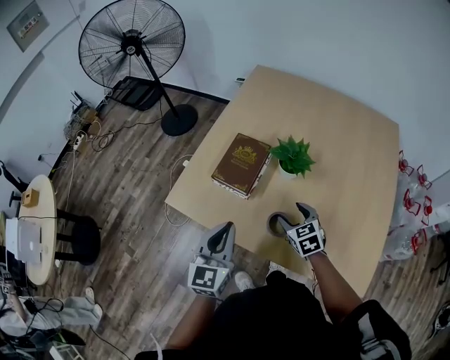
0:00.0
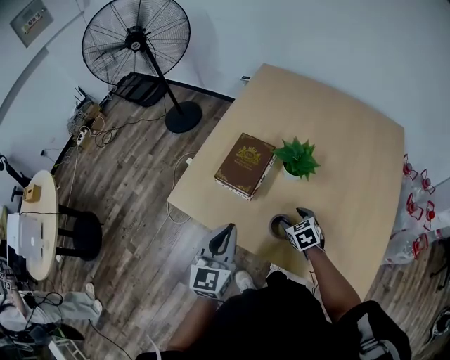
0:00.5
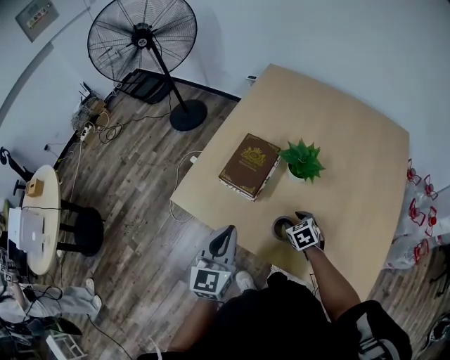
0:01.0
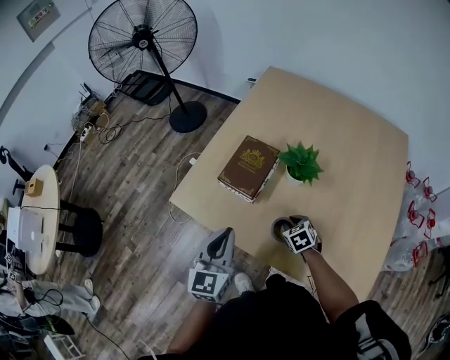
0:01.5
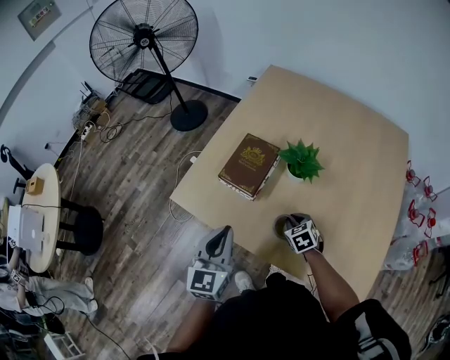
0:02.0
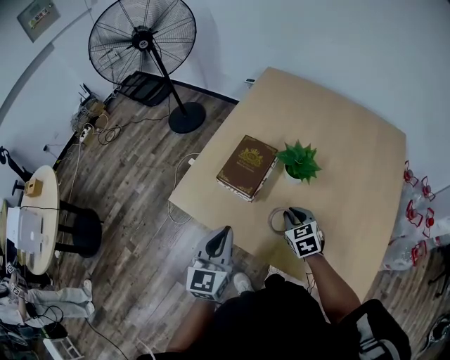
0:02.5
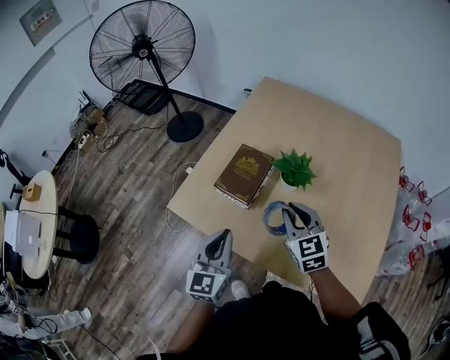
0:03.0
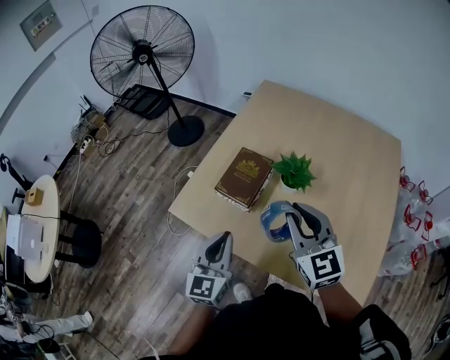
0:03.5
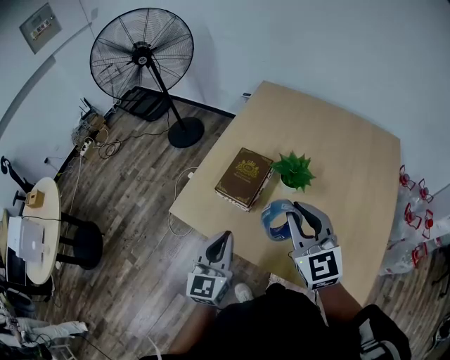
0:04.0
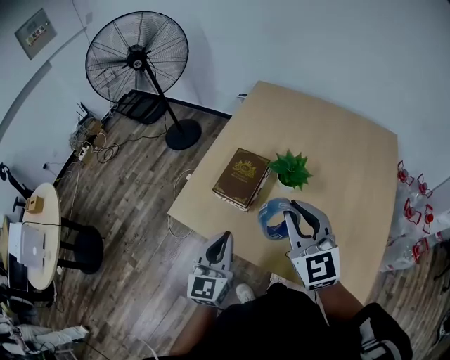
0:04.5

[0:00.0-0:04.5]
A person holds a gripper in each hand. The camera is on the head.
0:00.0 to 0:02.0: The right gripper goes roughly 10 cm downward, and closes its fingers.
0:02.0 to 0:04.5: The right gripper heads upward, covering some 35 cm, and tilts its fingers about 50 degrees upward.

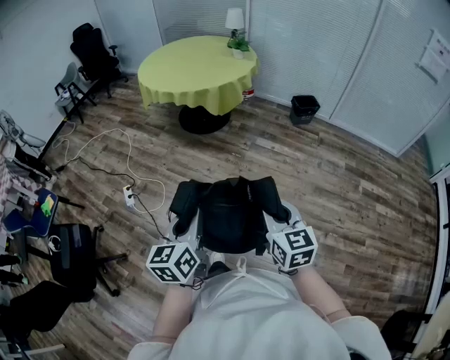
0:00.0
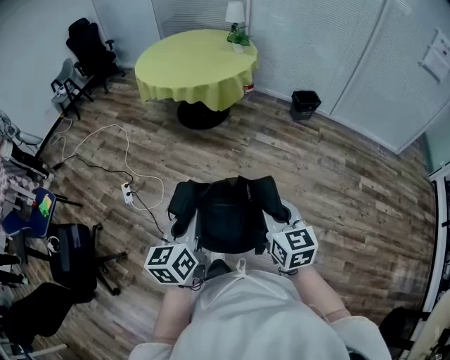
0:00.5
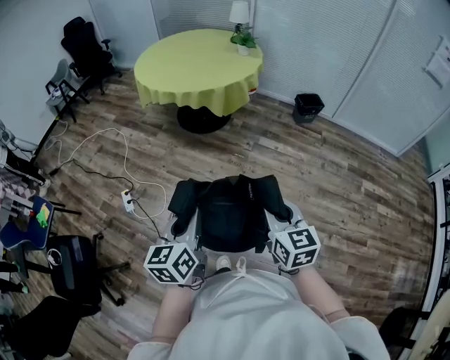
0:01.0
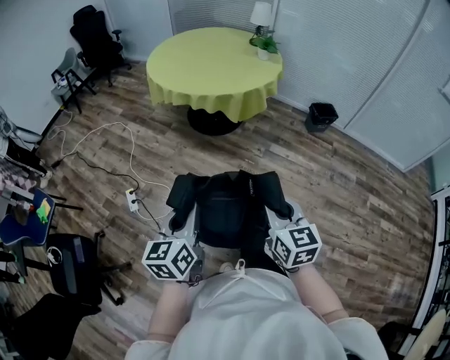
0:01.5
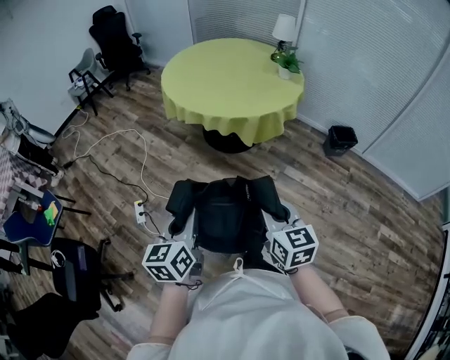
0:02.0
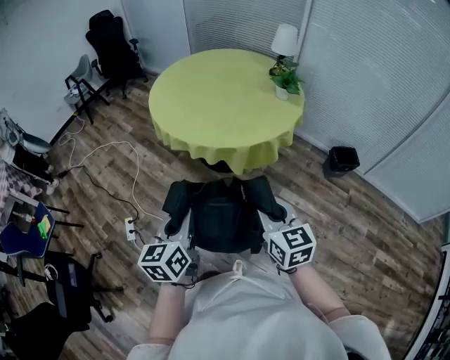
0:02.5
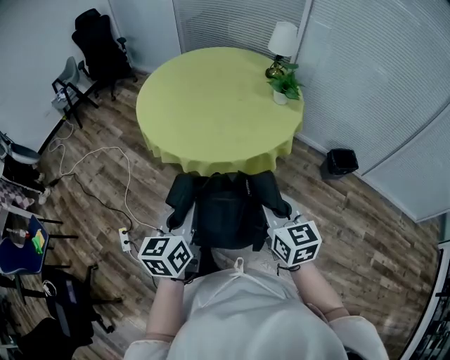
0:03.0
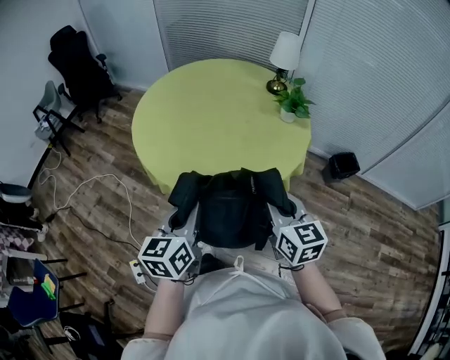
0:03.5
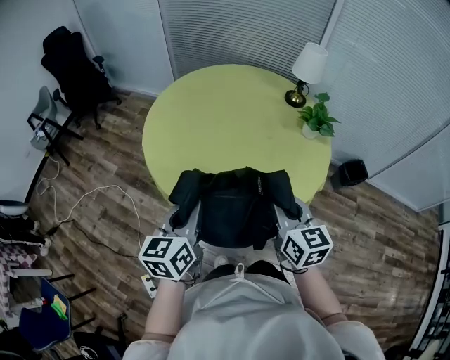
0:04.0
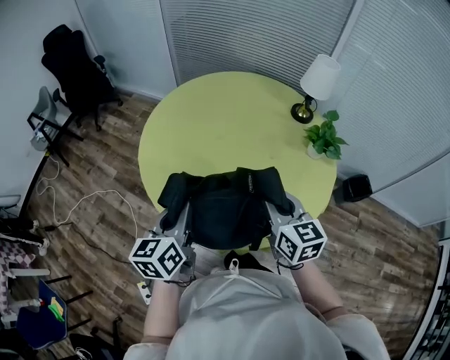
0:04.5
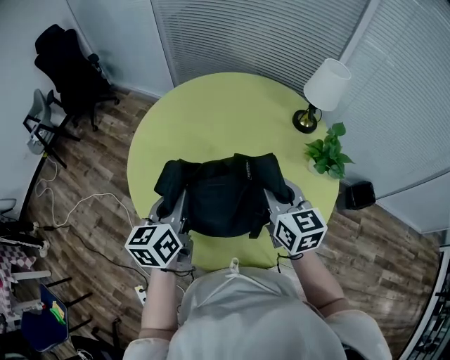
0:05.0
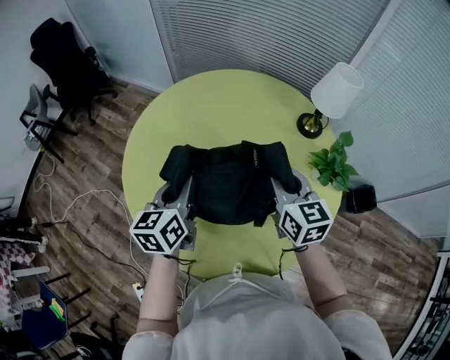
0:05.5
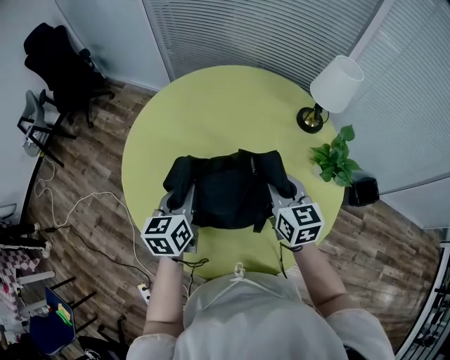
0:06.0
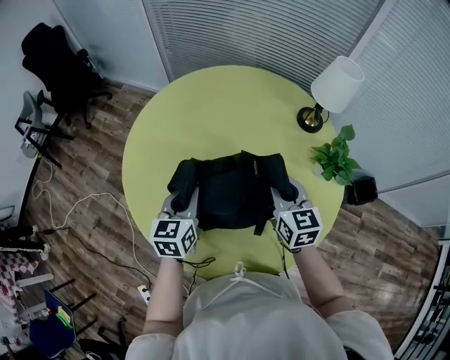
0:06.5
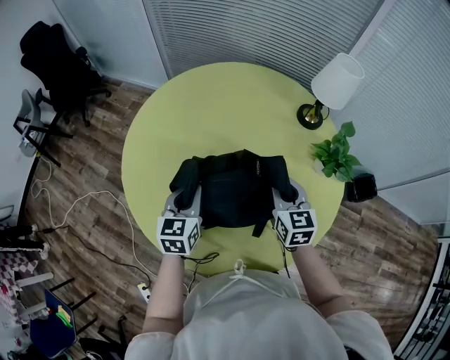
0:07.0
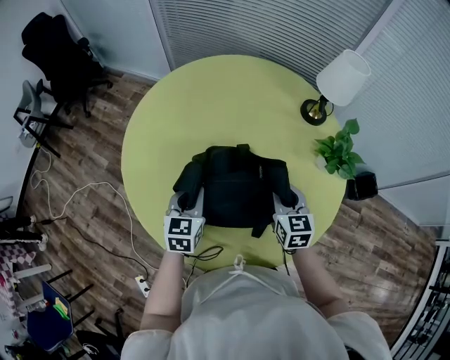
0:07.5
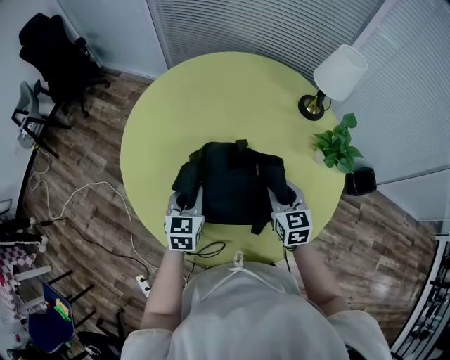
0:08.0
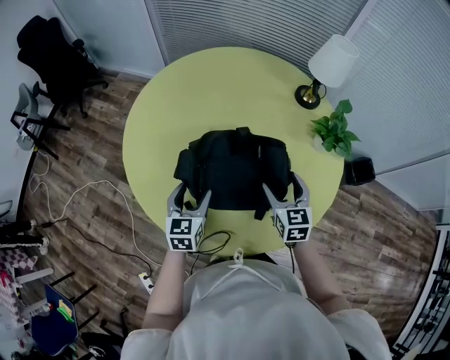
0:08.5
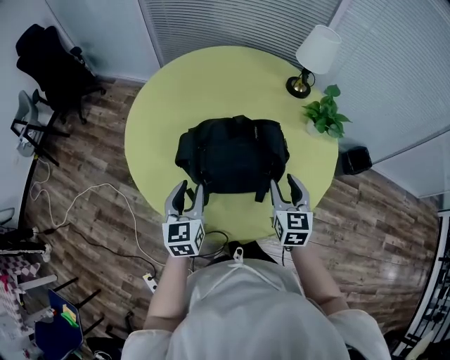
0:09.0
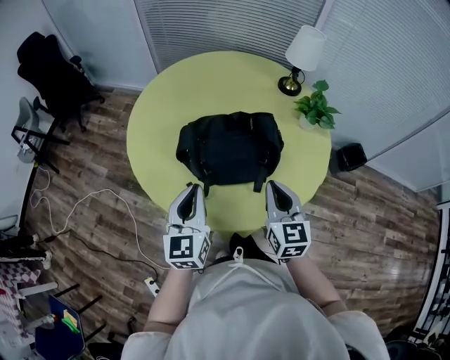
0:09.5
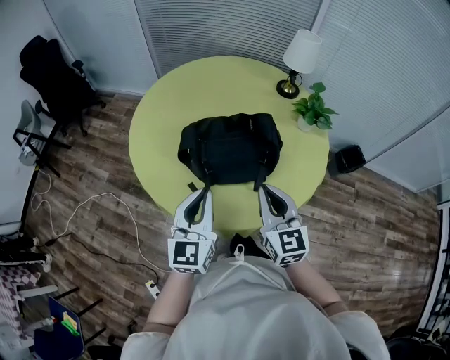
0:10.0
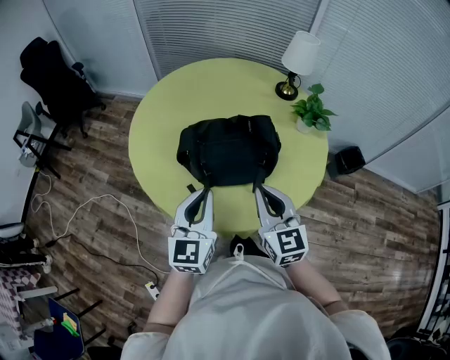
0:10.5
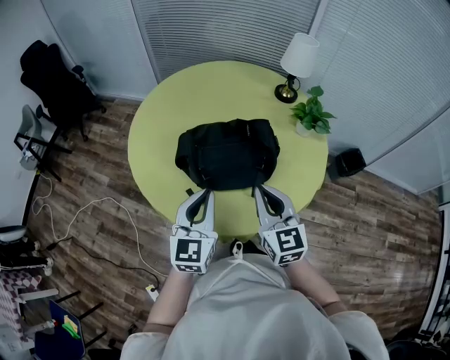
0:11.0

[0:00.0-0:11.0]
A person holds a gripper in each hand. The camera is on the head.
0:00.0 to 0:02.0: Both grippers move forward, some 35 cm.
0:02.0 to 0:03.5: Both grippers are carried forward, approximately 50 cm.
0:03.5 to 0:05.5: The two grippers travel together, forward, approximately 50 cm.
0:05.5 to 0:07.5: The grippers both shift downward by about 15 cm. The left gripper rotates some 20 degrees.
0:07.5 to 0:09.0: The two grippers go approximately 15 cm backward. The left gripper opens its fingers, while the right gripper opens up.
0:09.0 to 0:11.0: The right gripper shifts approximately 15 cm upward, backward and to the left, and closes its fingers. Meanwhile the left gripper is displaced upward, backward and to the right by some 15 cm, and closes.

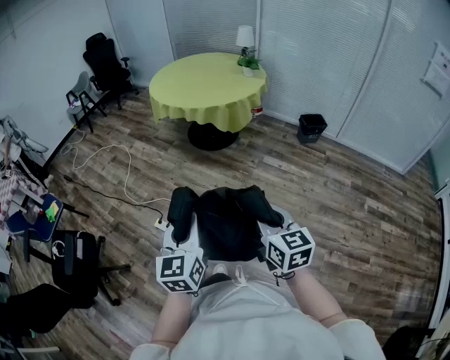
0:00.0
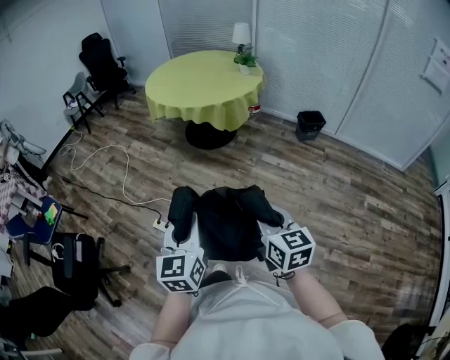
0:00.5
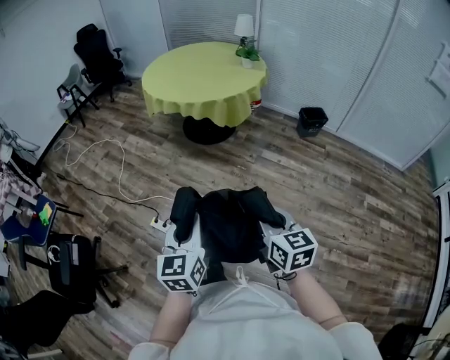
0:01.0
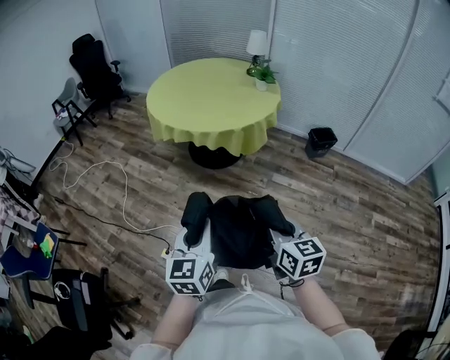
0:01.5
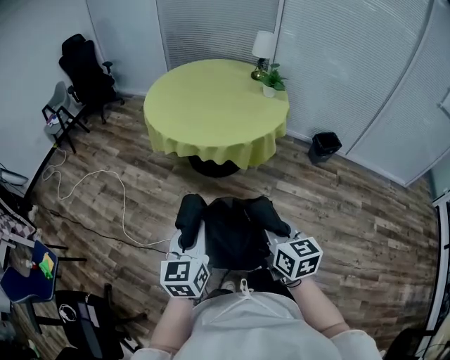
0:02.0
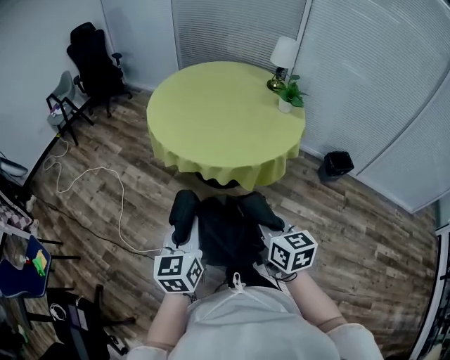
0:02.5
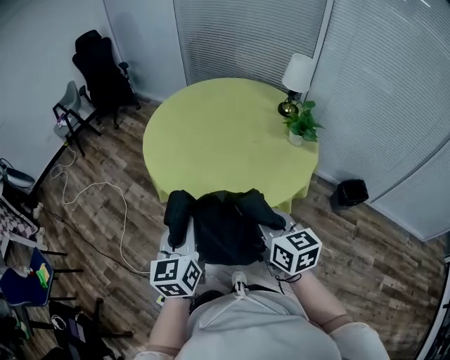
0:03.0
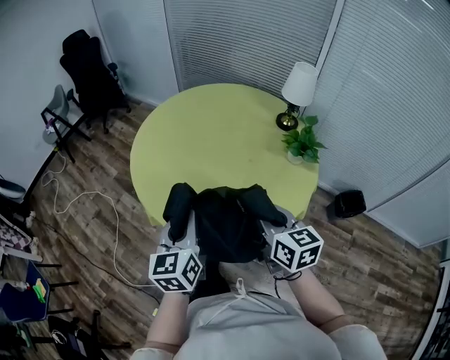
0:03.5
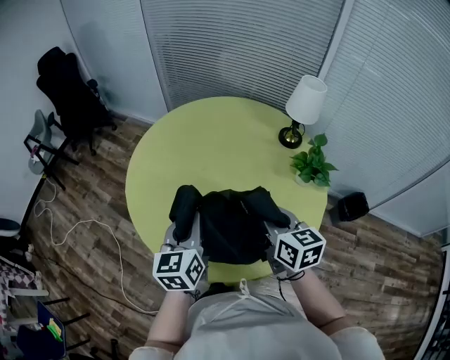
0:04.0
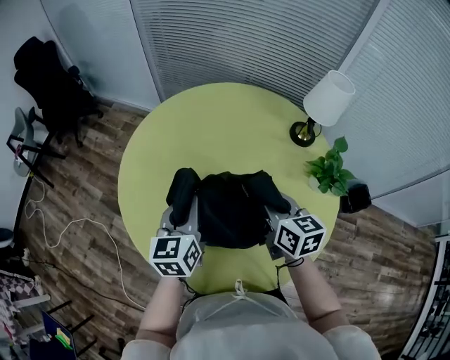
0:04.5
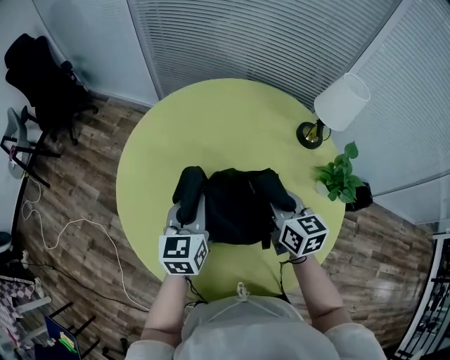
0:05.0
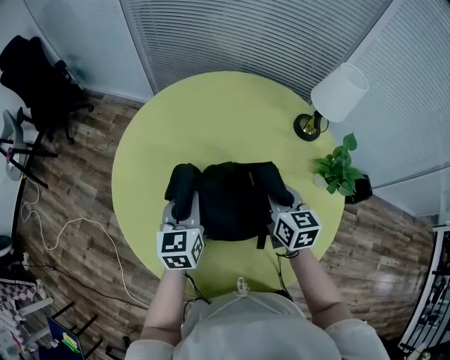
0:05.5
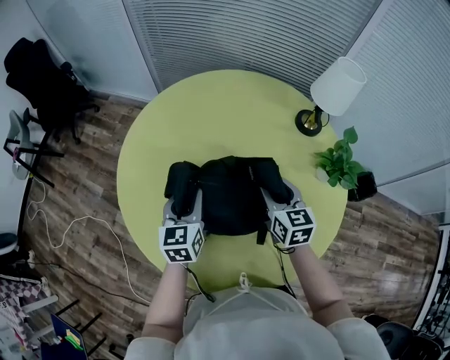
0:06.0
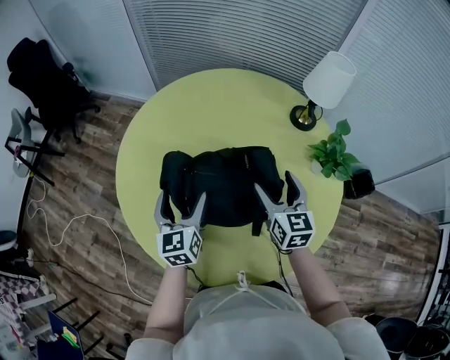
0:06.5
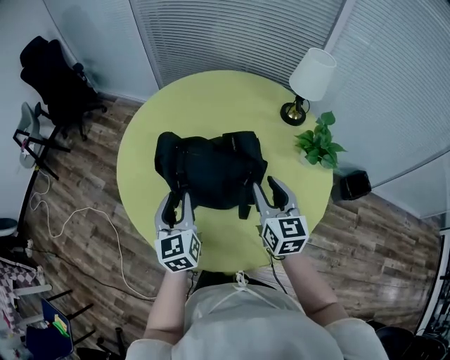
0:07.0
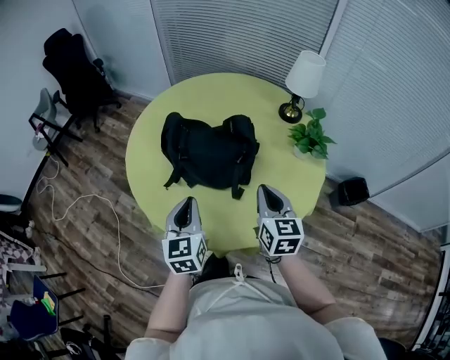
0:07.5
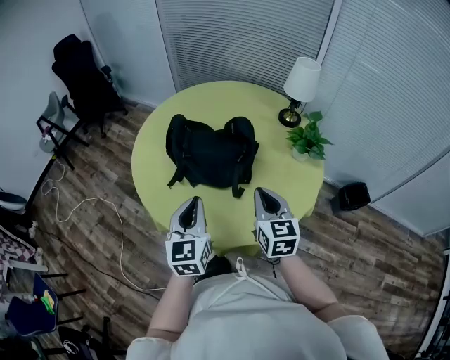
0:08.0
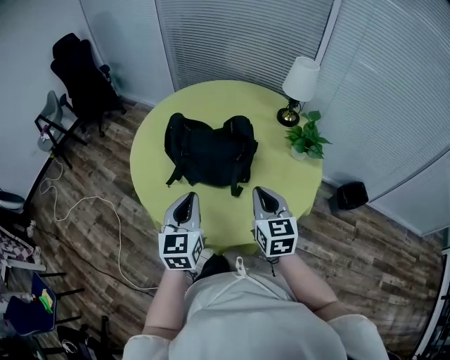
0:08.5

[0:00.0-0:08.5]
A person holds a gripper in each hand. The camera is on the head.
0:00.0 to 0:02.0: Both grippers are carried forward, roughly 50 cm.
0:02.0 to 0:04.0: The two grippers travel together, forward, about 70 cm.
0:04.0 to 0:06.5: The grippers both shift forward and downward by about 20 cm. The right gripper opens; the left gripper opens.
0:06.5 to 0:08.5: The two grippers go about 25 cm backward. The right gripper closes its fingers. Meanwhile the left gripper closes its fingers.

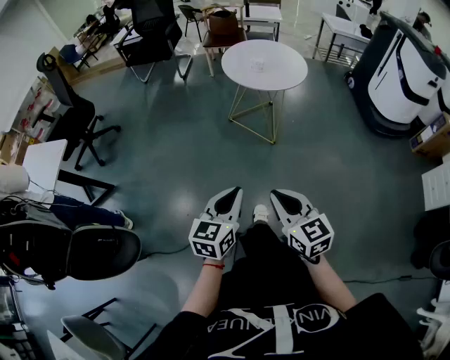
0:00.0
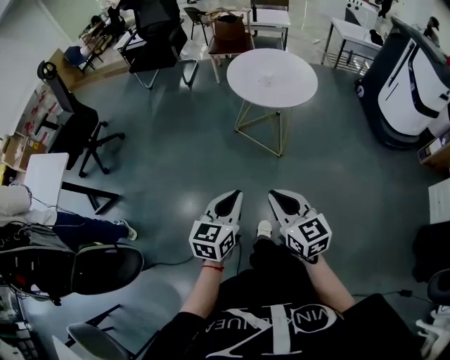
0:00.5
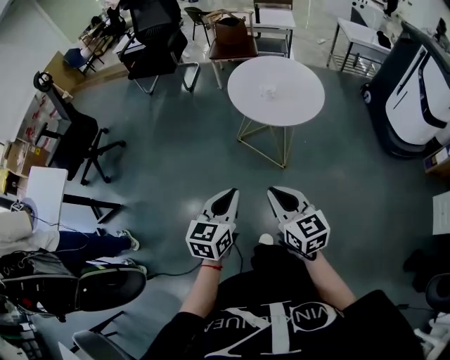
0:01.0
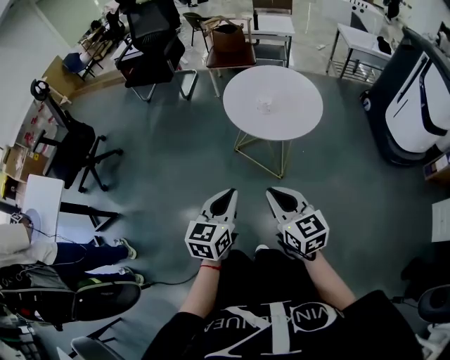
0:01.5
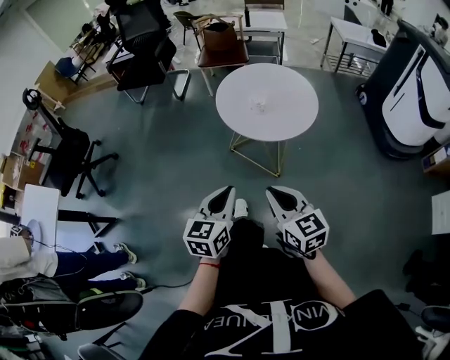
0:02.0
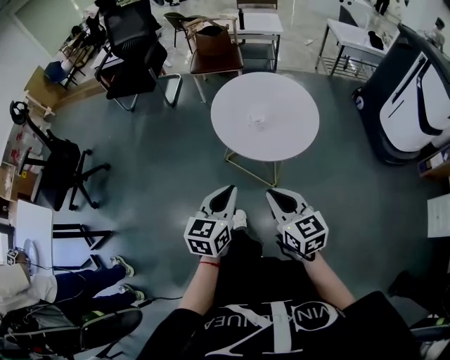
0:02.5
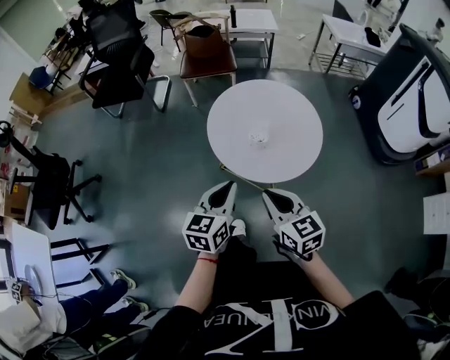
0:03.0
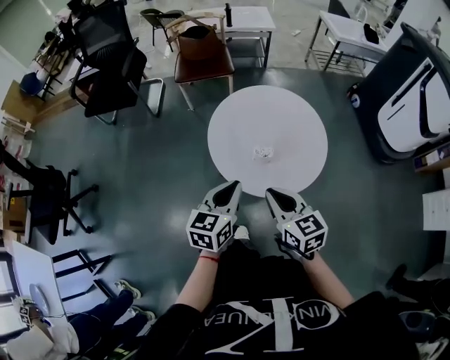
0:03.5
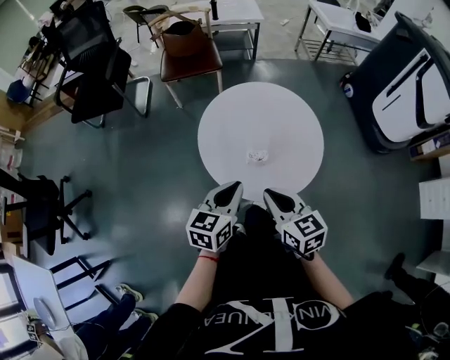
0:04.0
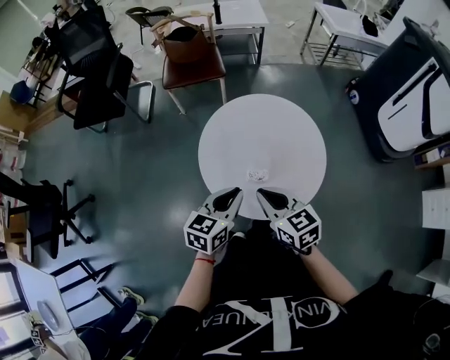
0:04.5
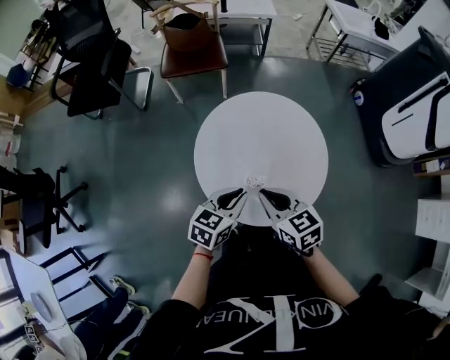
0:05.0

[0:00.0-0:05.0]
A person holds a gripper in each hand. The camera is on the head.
0:00.0 to 0:02.5: Both grippers are carried forward, approximately 40 cm.
0:02.5 to 0:05.0: The grippers both shift forward by about 30 cm. The left gripper turns by roughly 30 degrees.
